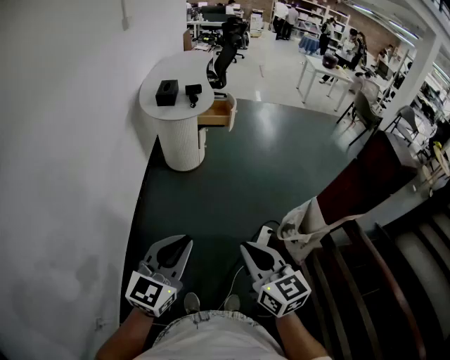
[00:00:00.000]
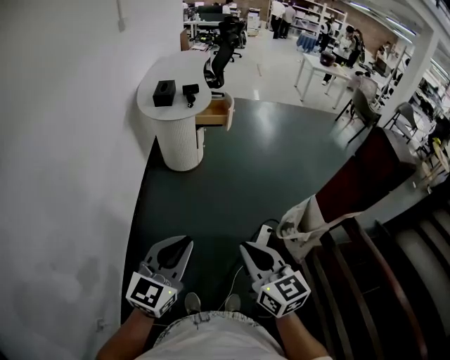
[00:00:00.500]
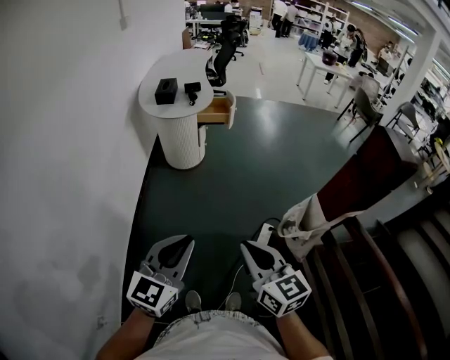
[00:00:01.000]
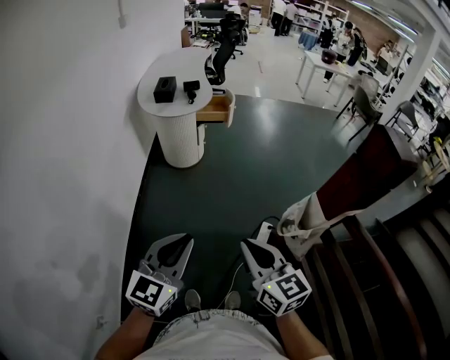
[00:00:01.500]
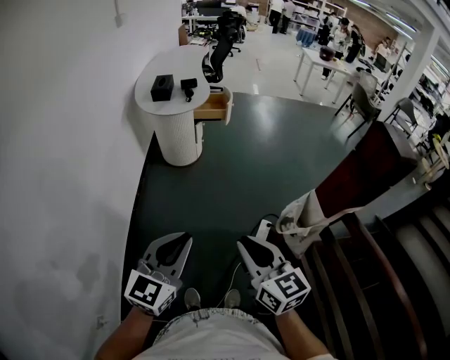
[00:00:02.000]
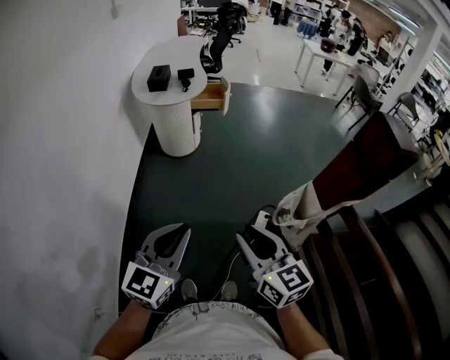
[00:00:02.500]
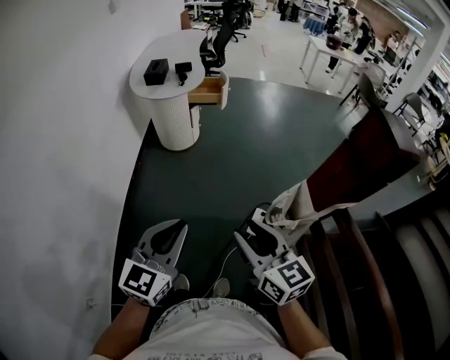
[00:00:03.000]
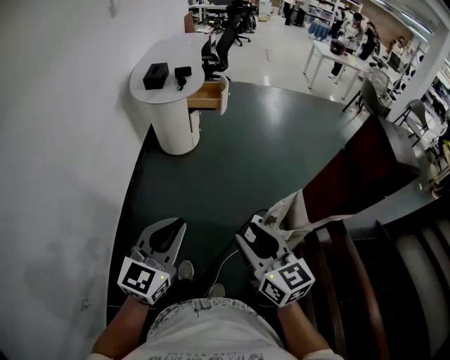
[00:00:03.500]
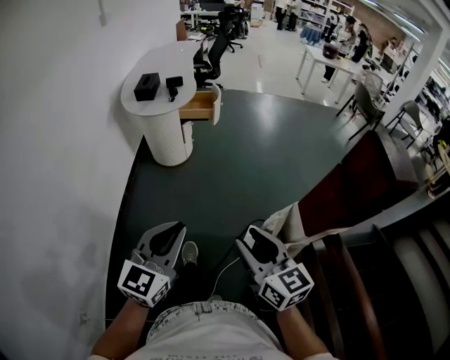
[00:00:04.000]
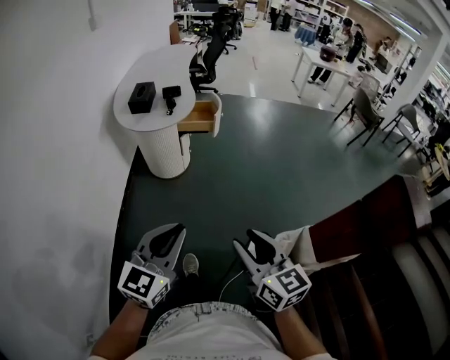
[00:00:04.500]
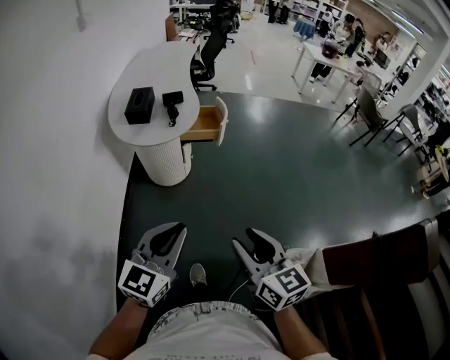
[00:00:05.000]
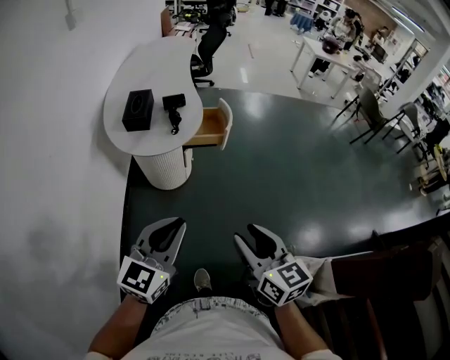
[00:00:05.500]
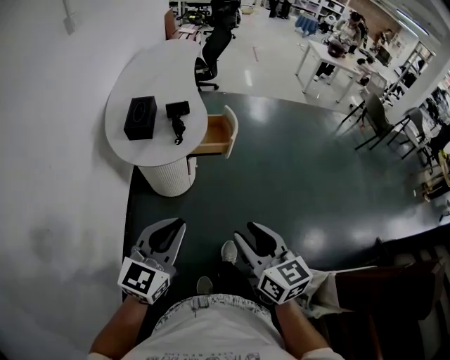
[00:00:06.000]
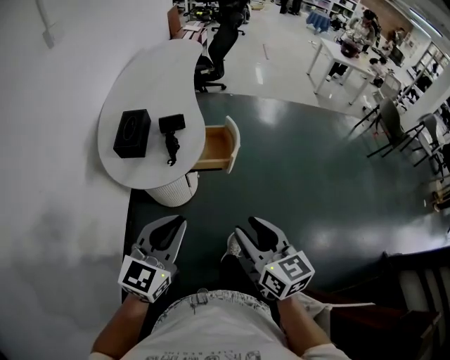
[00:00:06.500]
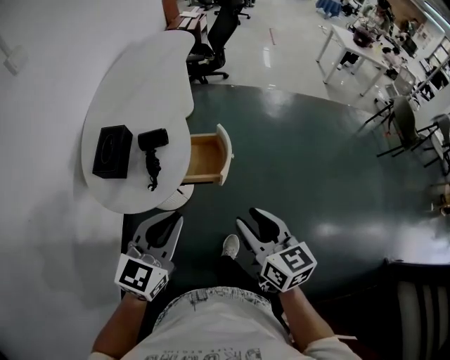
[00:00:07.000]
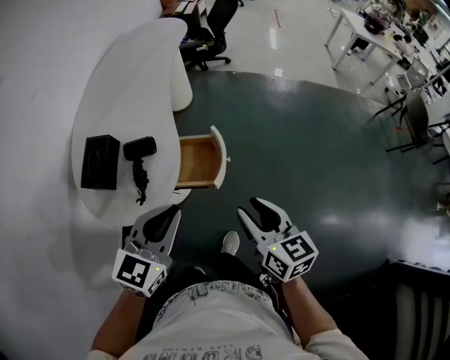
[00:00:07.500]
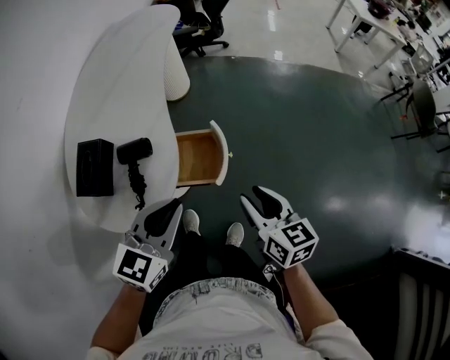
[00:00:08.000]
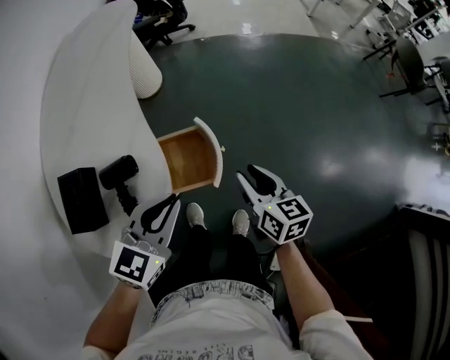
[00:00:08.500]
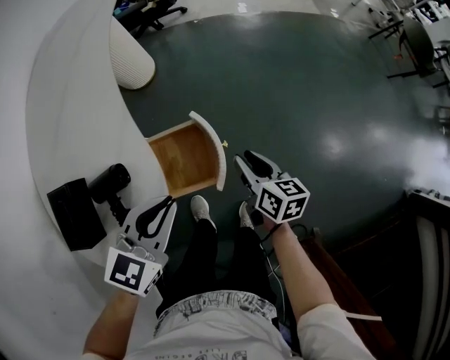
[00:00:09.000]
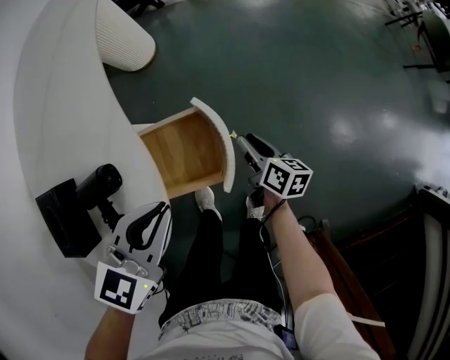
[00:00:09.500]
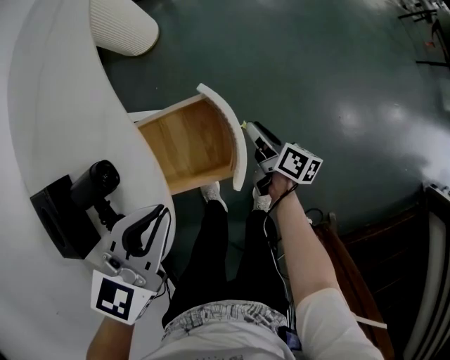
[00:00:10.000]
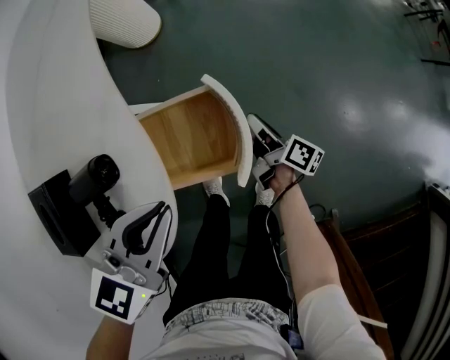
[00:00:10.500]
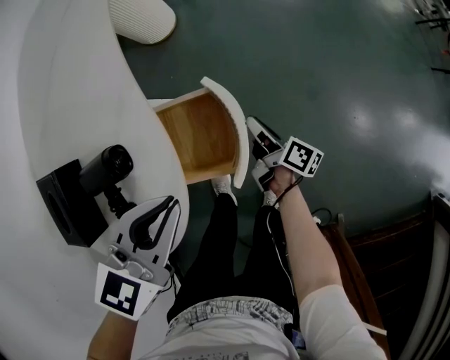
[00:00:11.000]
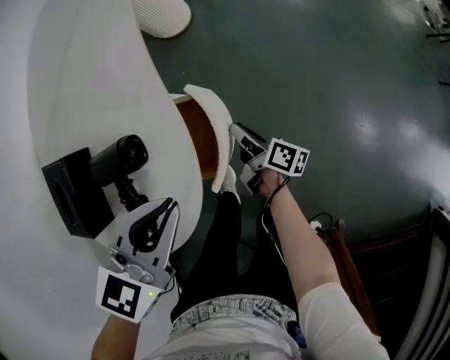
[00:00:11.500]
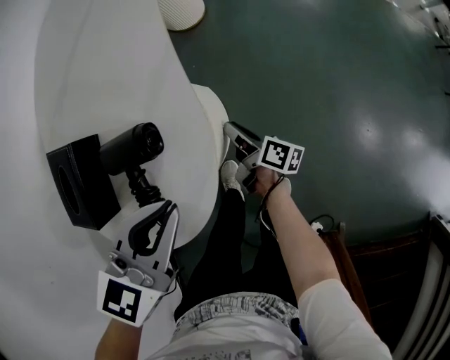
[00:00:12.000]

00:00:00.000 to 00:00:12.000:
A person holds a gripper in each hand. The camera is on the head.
00:00:00.000 to 00:00:02.000: Neither gripper changes place.
00:00:02.000 to 00:00:04.000: Both grippers move to the right and forward, approximately 15 cm. The right gripper opens its fingers.
00:00:04.000 to 00:00:06.000: Both grippers are carried forward and to the left, approximately 40 cm.
00:00:06.000 to 00:00:08.000: The pair of grippers is taken forward, approximately 50 cm.
00:00:08.000 to 00:00:10.000: The right gripper heads downward and forward, covering about 35 cm, and rotates around the line of its fingers by roughly 50 degrees, clockwise from behind; the left gripper moves downward and forward, roughly 15 cm.
00:00:10.000 to 00:00:12.000: The left gripper shifts some 5 cm to the left. Meanwhile the right gripper goes some 20 cm to the left, and rotates some 20 degrees.

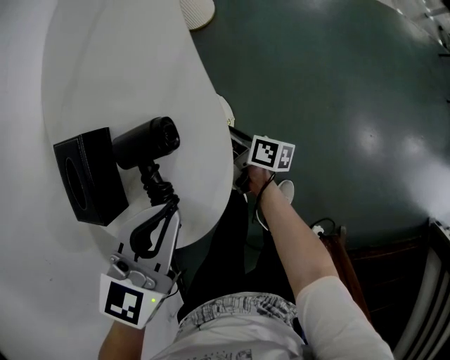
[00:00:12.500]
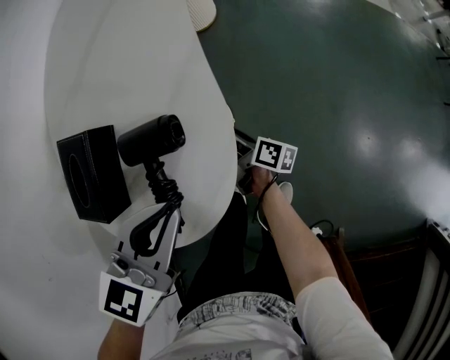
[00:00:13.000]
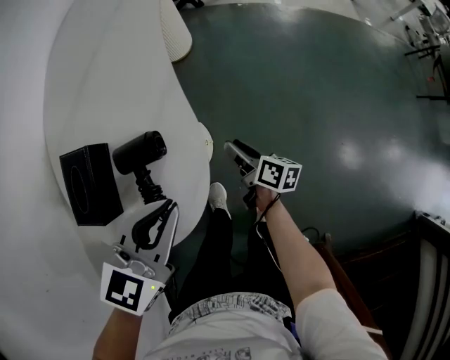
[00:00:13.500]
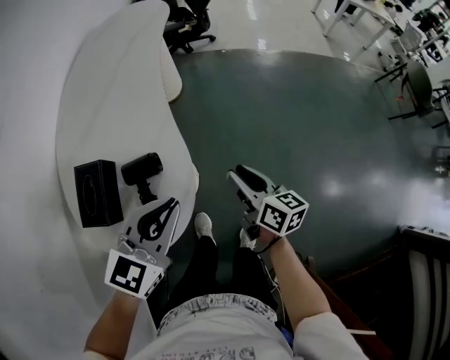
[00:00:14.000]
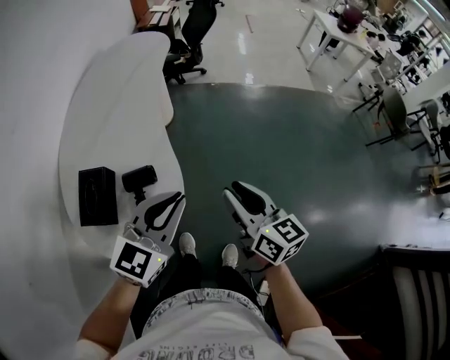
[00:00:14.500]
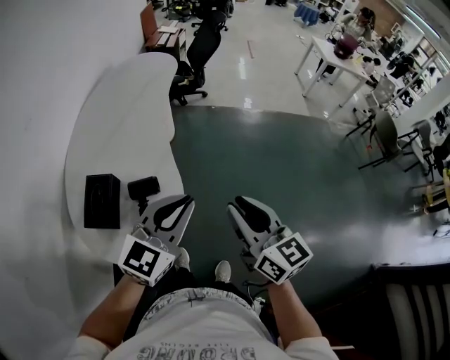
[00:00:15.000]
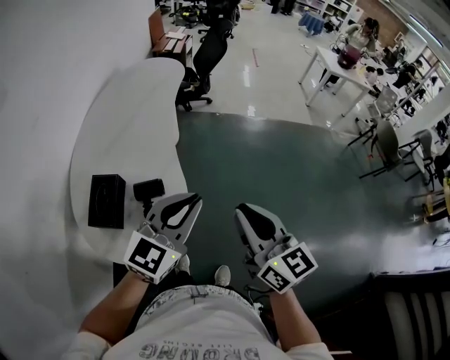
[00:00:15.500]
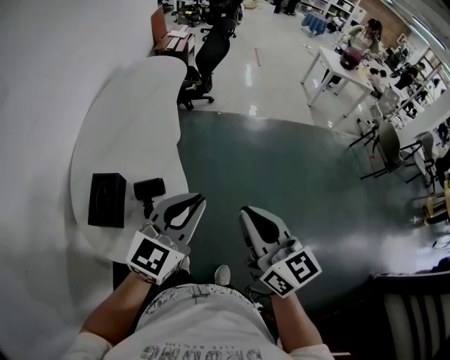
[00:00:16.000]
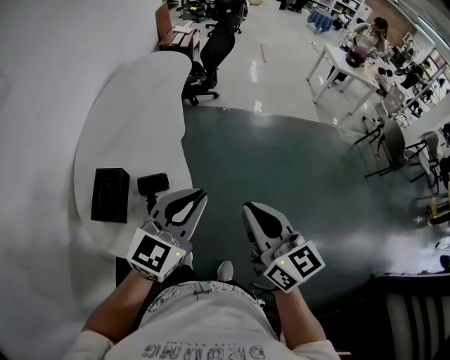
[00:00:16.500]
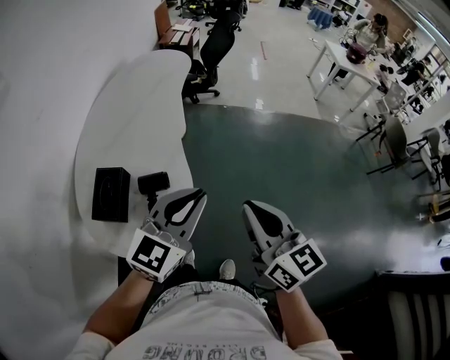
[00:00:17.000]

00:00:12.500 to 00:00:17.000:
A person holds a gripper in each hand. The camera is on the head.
00:00:12.500 to 00:00:14.500: The left gripper travels upward and to the right by some 20 cm, and rotates approximately 30 degrees, while the right gripper travels upward and to the right by roughly 40 cm, and rotates around the line of its fingers by approximately 50 degrees, counterclockwise from behind.
00:00:14.500 to 00:00:17.000: The left gripper travels upward by approximately 5 cm. Meanwhile the right gripper is displaced upward by about 10 cm, and closes up.

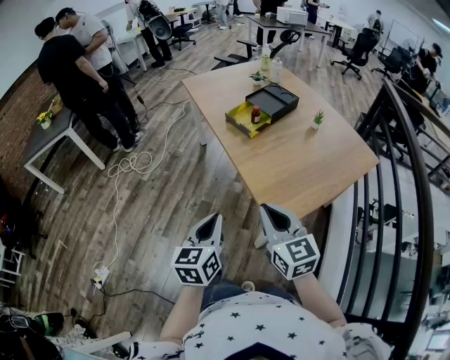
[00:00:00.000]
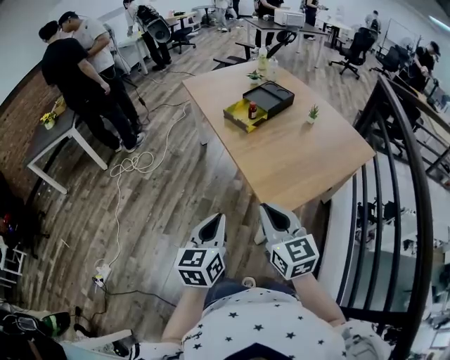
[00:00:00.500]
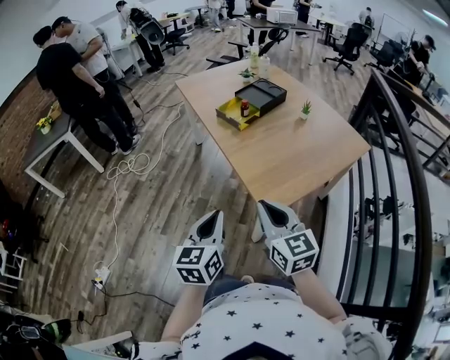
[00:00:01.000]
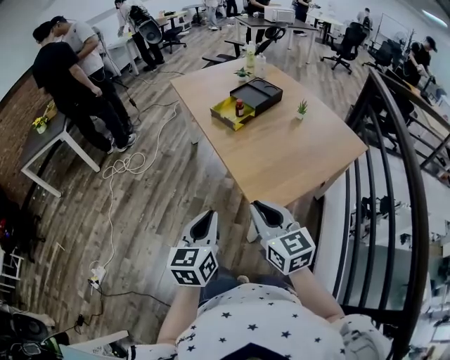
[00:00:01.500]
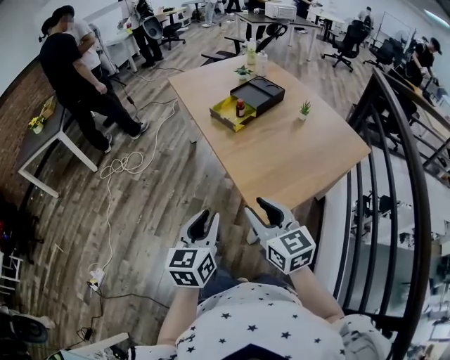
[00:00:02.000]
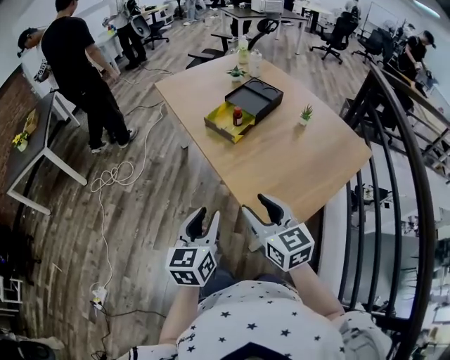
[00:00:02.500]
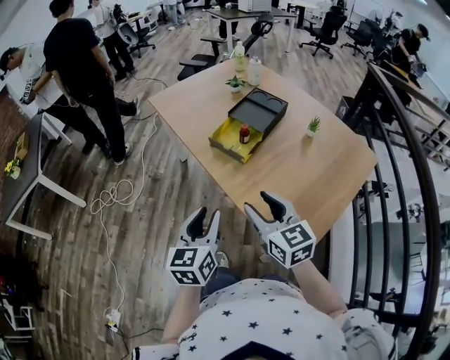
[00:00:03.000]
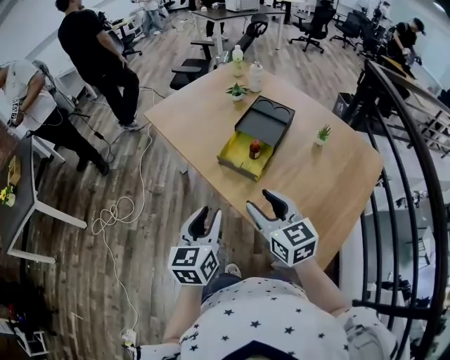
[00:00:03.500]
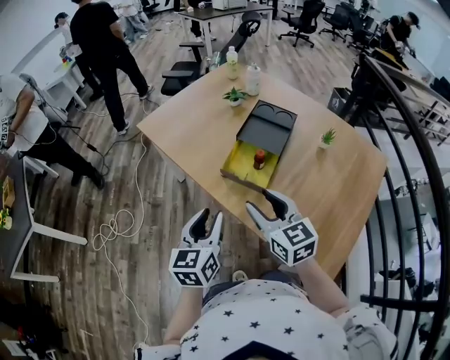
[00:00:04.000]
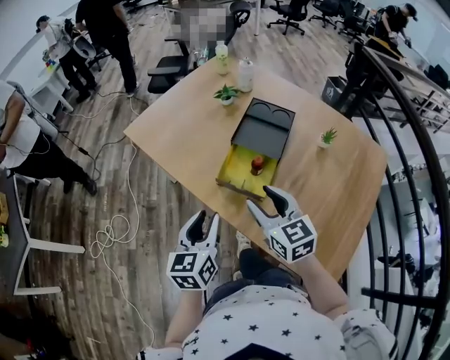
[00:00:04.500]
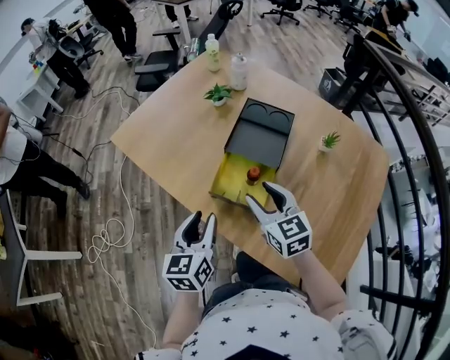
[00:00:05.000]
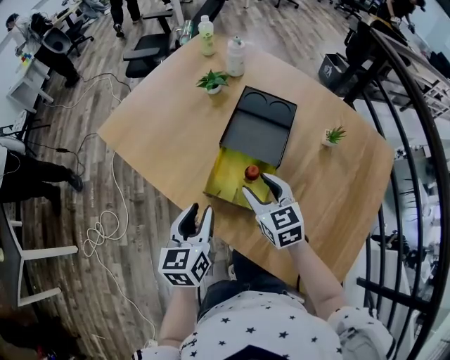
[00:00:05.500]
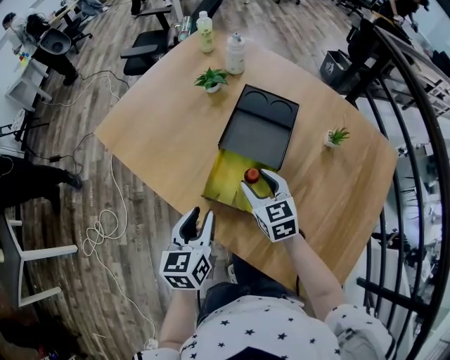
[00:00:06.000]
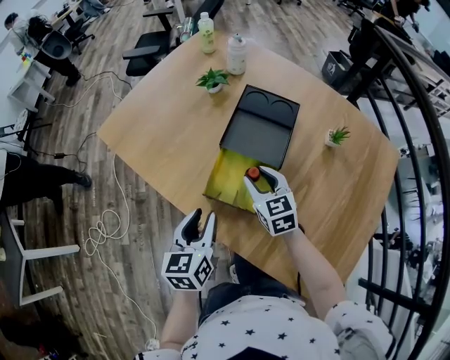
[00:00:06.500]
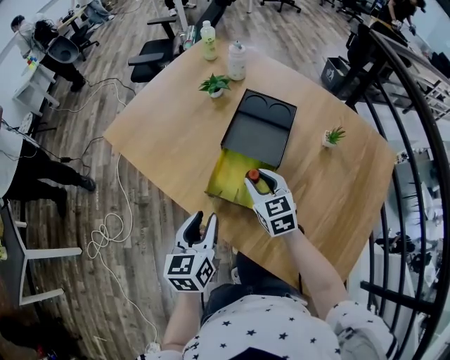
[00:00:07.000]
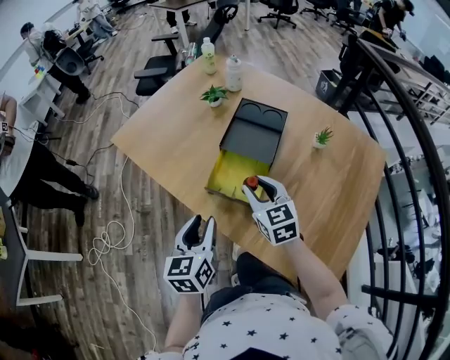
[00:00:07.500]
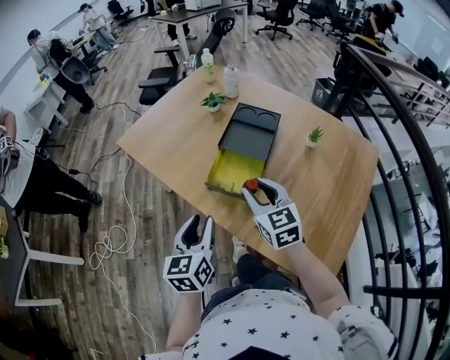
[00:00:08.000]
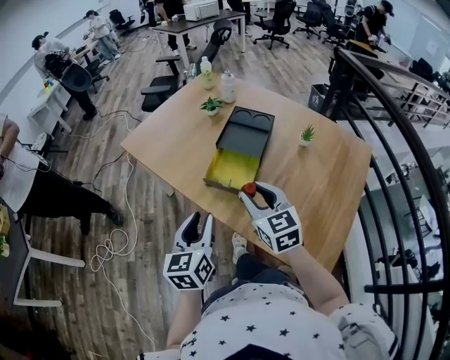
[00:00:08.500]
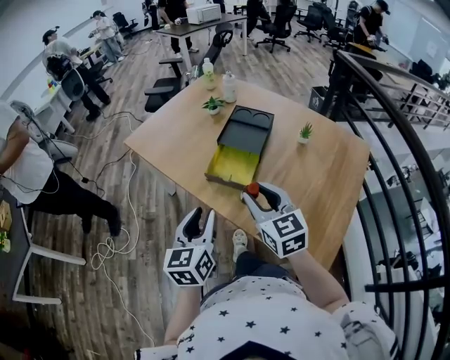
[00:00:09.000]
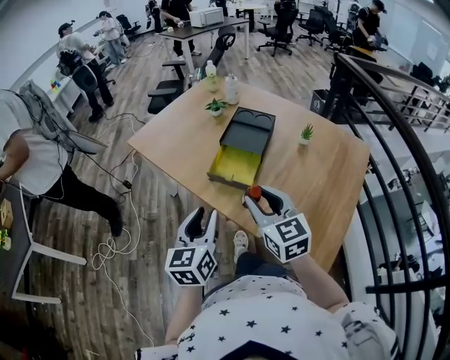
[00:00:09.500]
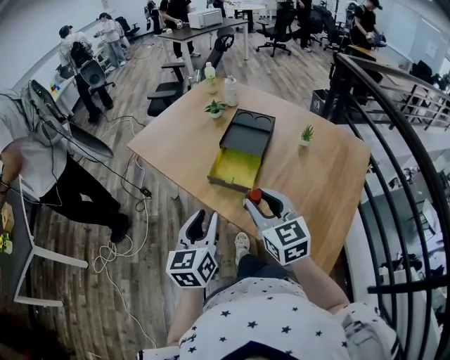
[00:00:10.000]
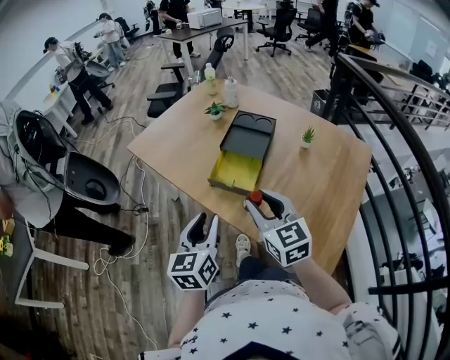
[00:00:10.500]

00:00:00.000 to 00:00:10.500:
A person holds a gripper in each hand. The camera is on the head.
00:00:00.000 to 00:00:02.000: The right gripper opens its fingers. Meanwhile the left gripper opens up.
00:00:02.000 to 00:00:04.000: Both grippers are carried forward, some 40 cm.
00:00:04.000 to 00:00:06.500: The grippers both shift forward and downward by roughly 25 cm.
00:00:06.500 to 00:00:08.500: Both grippers travel together backward and upward, about 20 cm.
00:00:08.500 to 00:00:10.500: The right gripper shifts roughly 5 cm backward.
